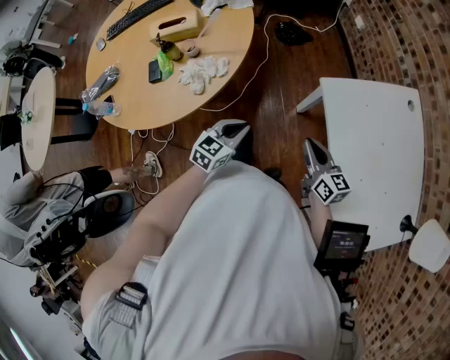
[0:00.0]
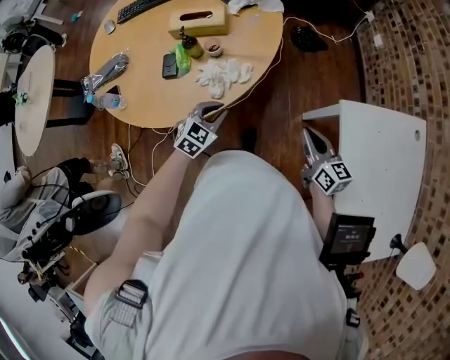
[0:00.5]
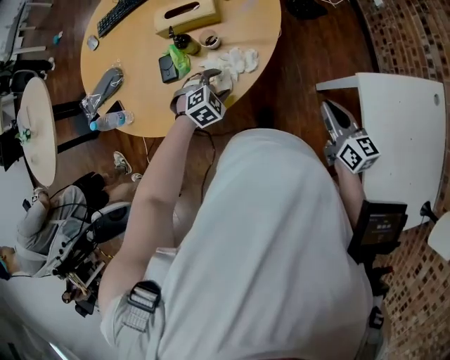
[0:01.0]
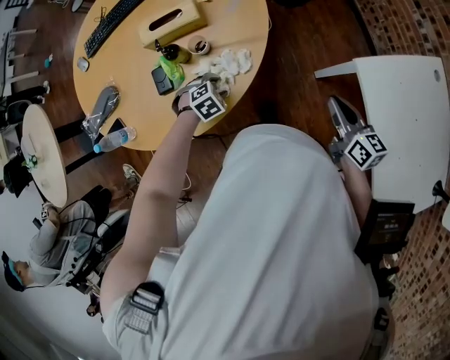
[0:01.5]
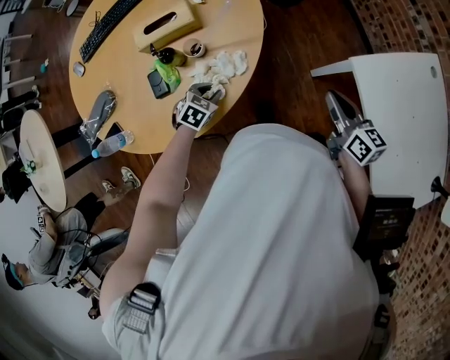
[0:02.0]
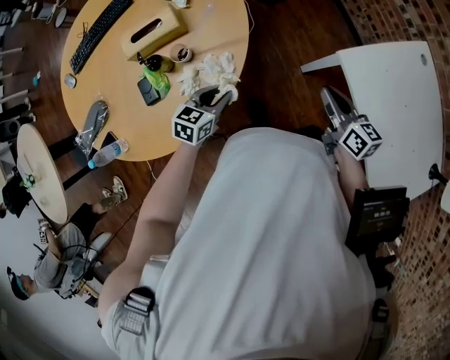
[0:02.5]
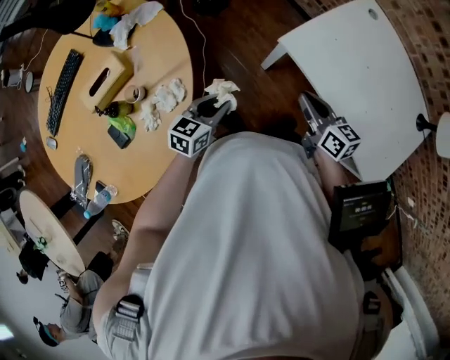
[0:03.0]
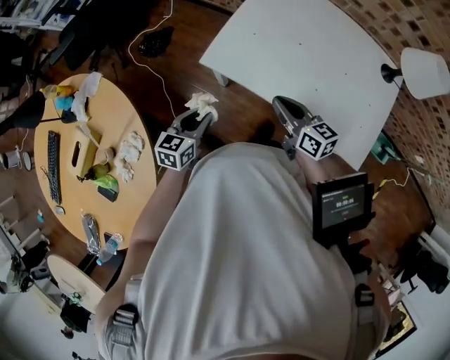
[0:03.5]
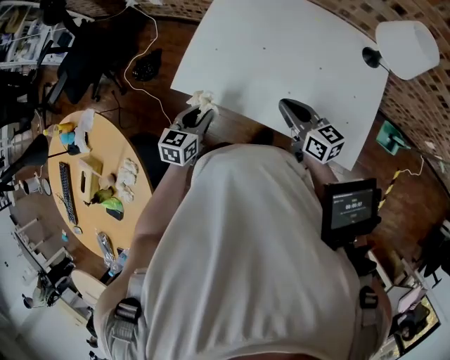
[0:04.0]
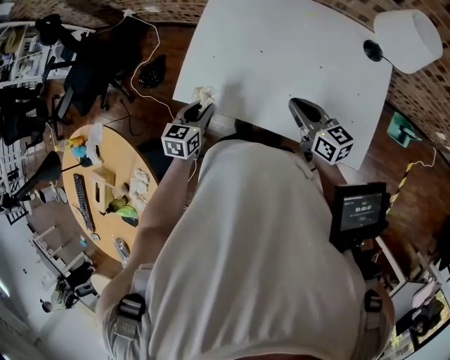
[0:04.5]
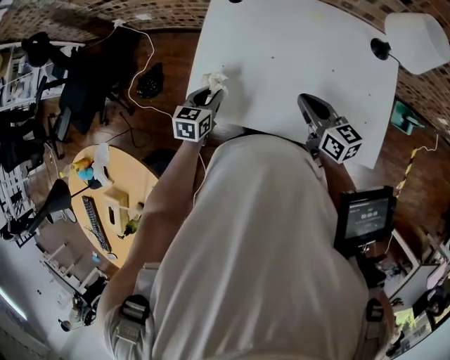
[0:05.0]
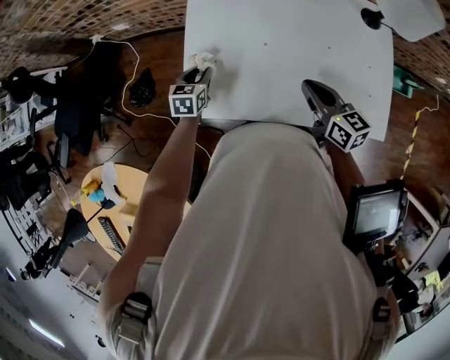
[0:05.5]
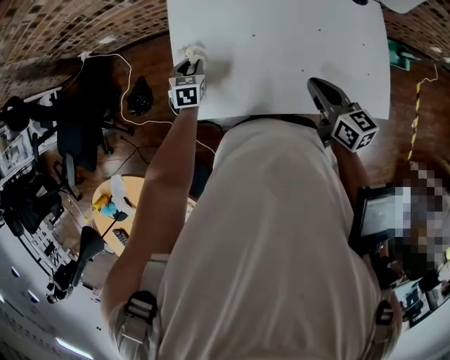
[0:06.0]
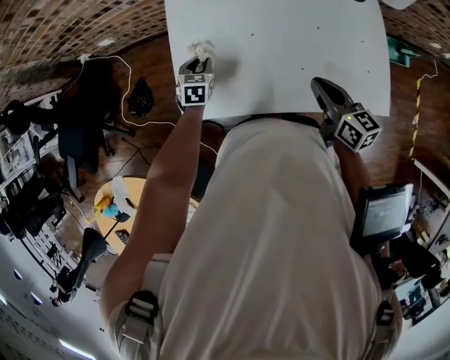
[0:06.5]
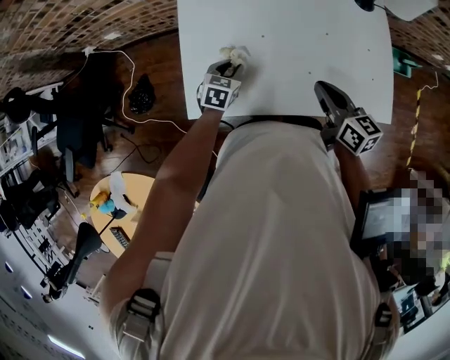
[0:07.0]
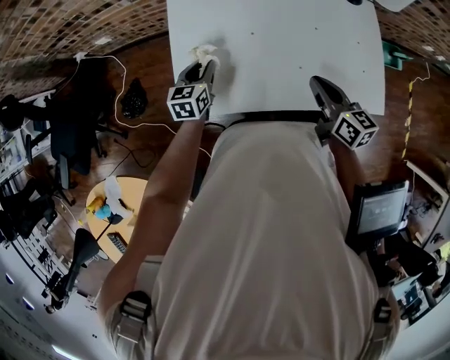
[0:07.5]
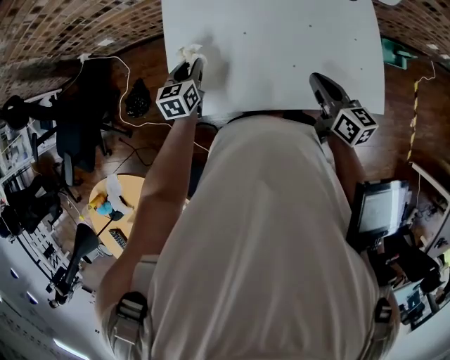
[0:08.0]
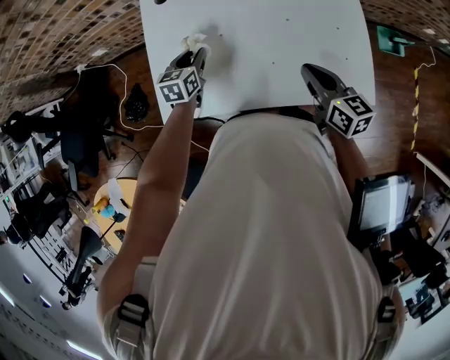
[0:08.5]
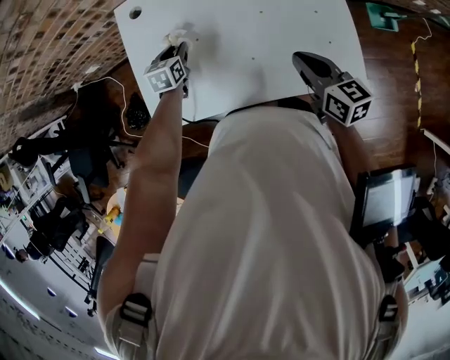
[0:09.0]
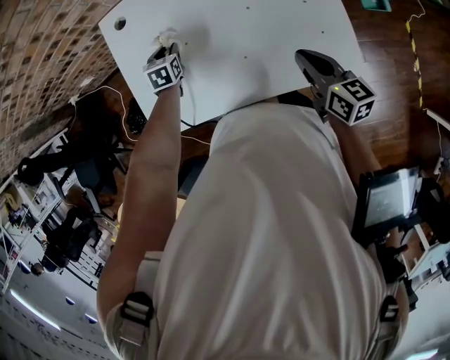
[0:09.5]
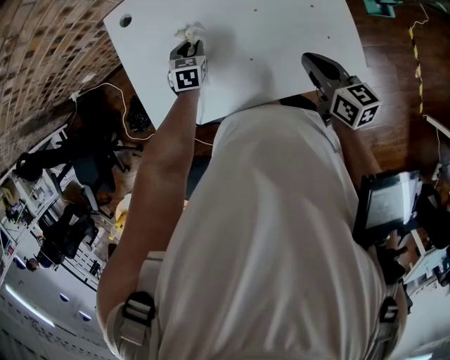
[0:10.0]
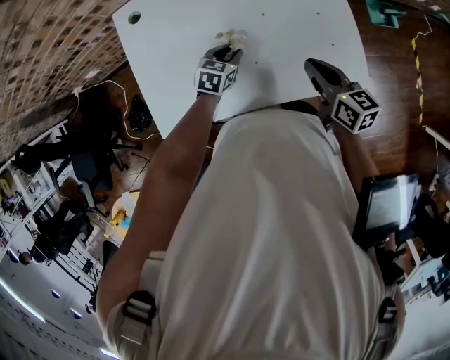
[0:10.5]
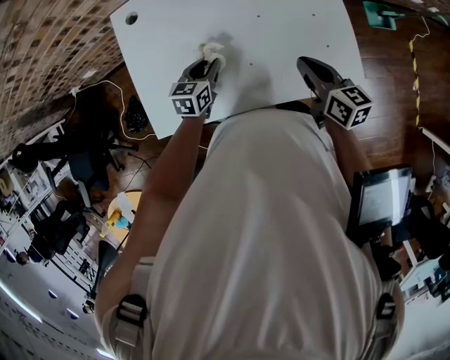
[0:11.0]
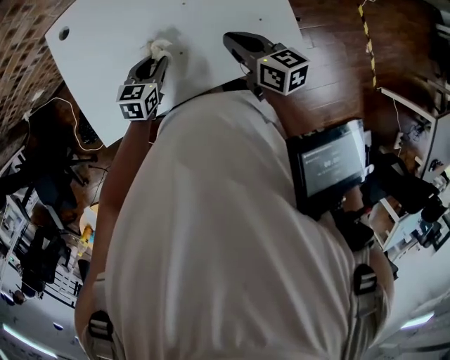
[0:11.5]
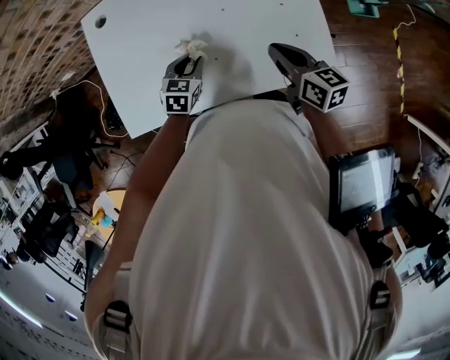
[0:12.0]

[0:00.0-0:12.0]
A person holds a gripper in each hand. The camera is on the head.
0:00.0 to 0:02.0: The left gripper changes place by some 30 cm, tilts its fingers approximately 30 degrees downward, and opens; the right gripper moves approximately 15 cm.
0:02.0 to 0:04.0: The two grippers travel together, approximately 50 cm. The left gripper swivels about 40 degrees. Meanwhile the right gripper changes its angle by approximately 40 degrees.
0:04.0 to 0:06.0: The right gripper changes its angle by approximately 30 degrees, while the left gripper shifts approximately 25 cm forward, and swivels roughly 20 degrees.
0:06.0 to 0:08.0: The left gripper is displaced upward by roughly 5 cm, moves some 10 cm to the right and comes back, and rotates some 20 degrees.
0:08.0 to 0:10.0: The left gripper travels to the right by about 20 cm, and rotates some 30 degrees, while the right gripper travels to the right by approximately 10 cm.
0:10.0 to 0:12.0: The left gripper swings left and right, about 10 cm each way, with 2 reversals.

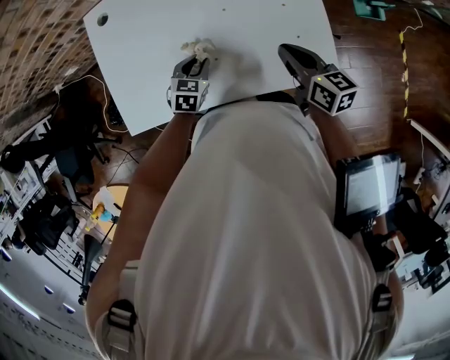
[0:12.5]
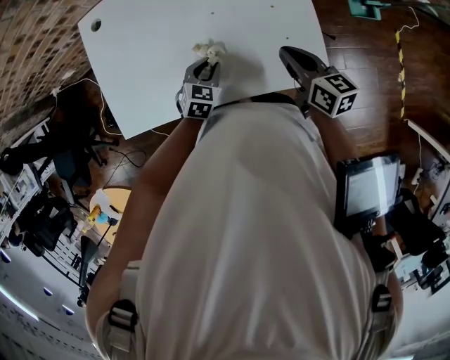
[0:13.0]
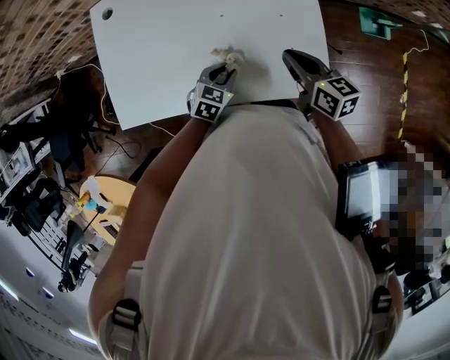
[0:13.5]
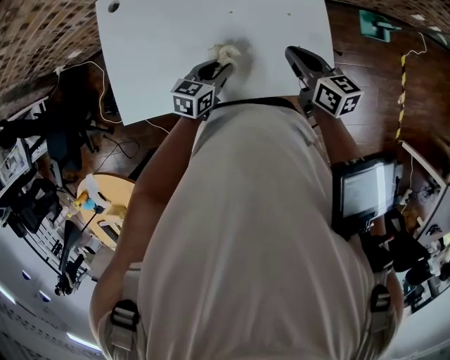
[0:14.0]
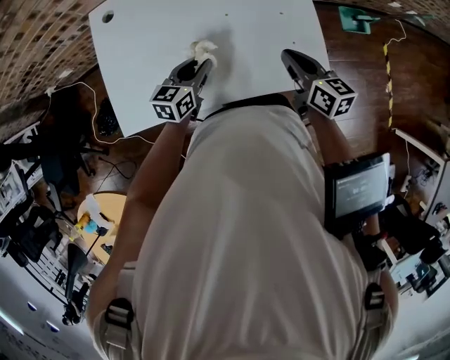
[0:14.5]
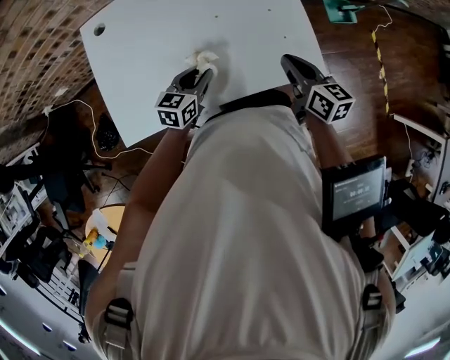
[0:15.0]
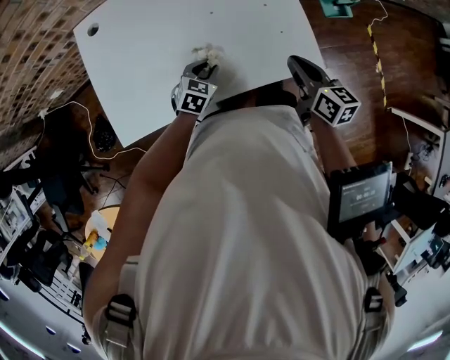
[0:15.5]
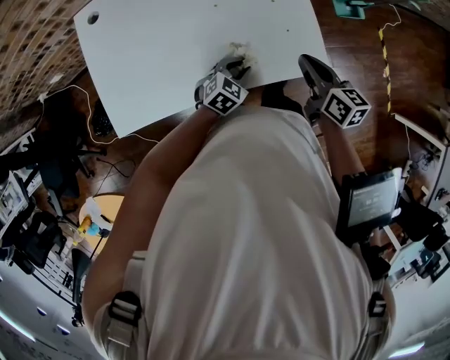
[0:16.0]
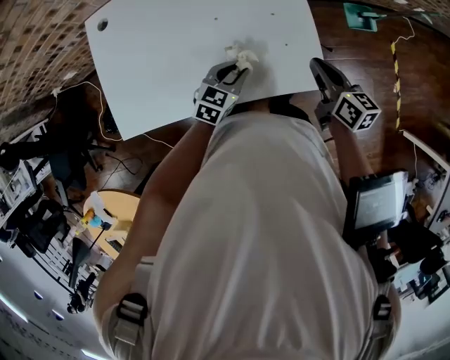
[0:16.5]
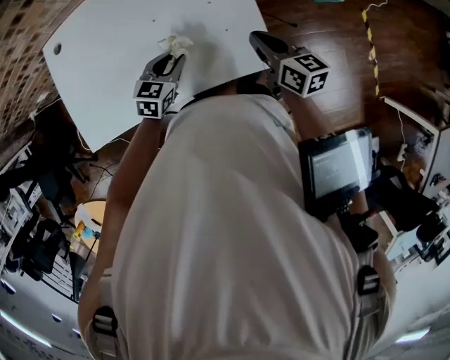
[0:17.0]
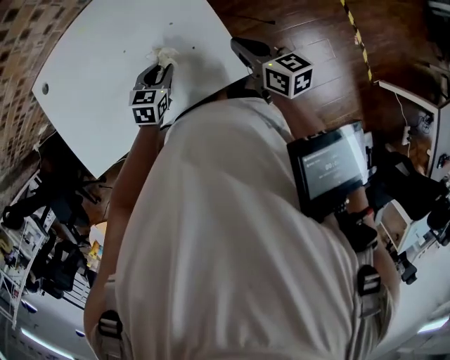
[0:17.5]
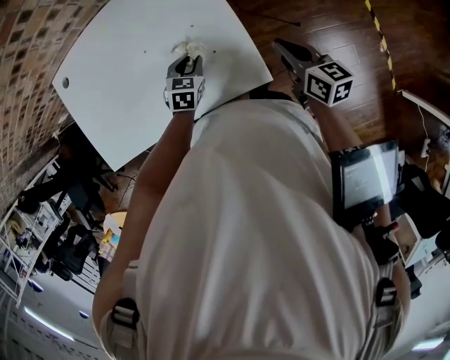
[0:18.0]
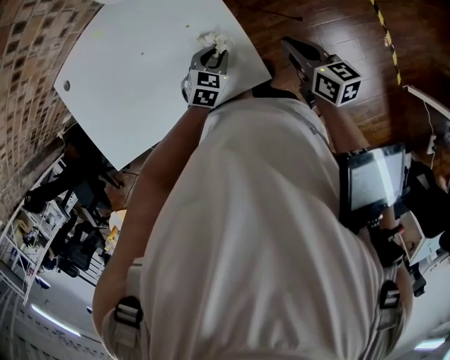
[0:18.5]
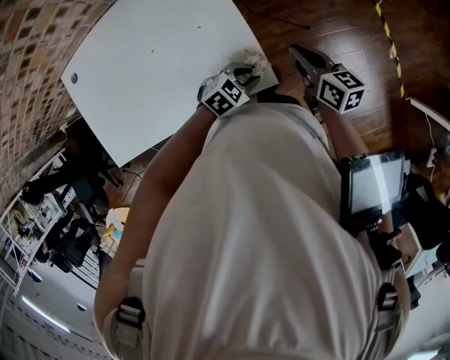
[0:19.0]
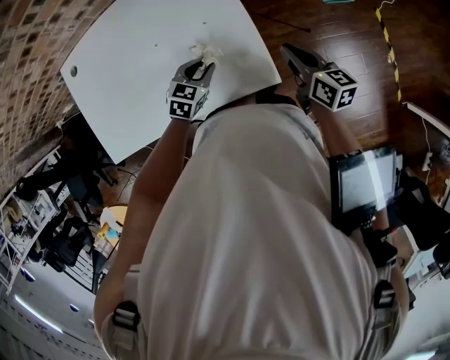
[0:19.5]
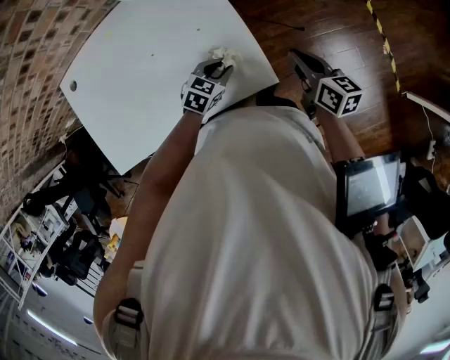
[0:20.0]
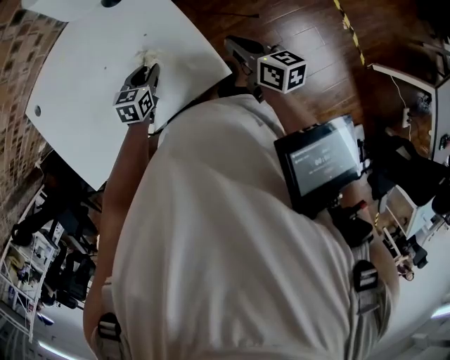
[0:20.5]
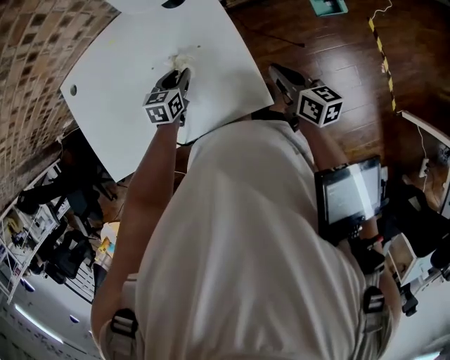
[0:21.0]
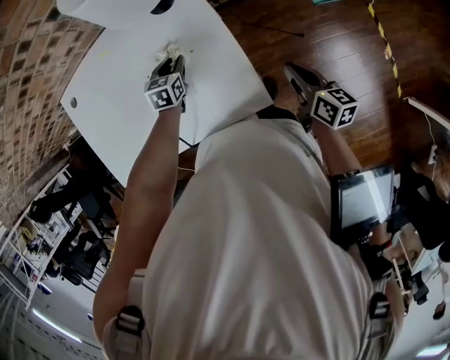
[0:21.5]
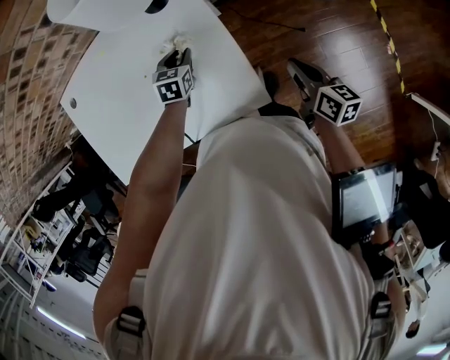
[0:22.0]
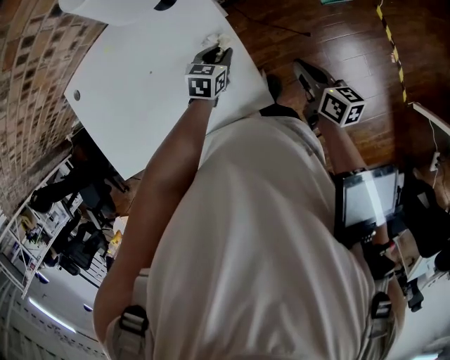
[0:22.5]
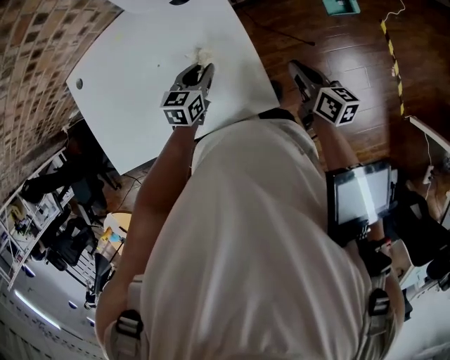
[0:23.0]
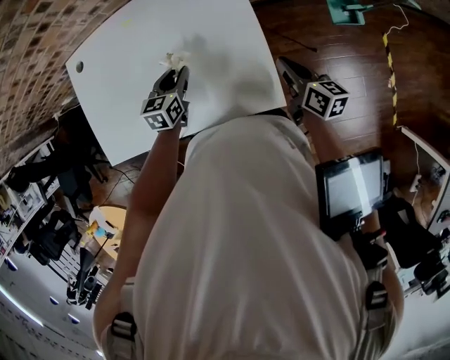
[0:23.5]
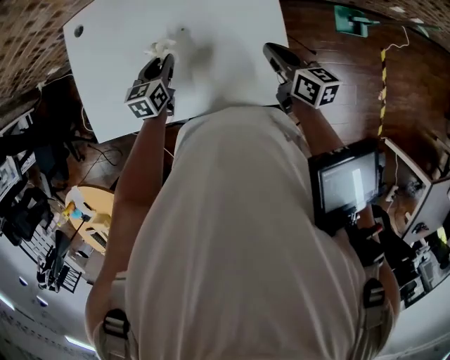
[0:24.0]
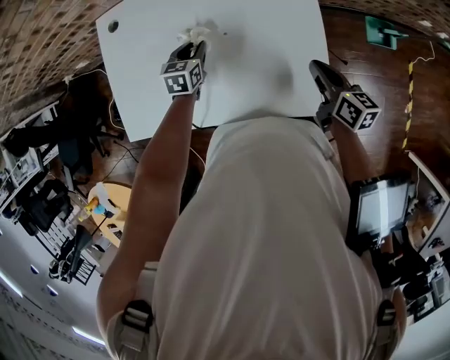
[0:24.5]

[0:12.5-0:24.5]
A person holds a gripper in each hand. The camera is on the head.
0:12.5 to 0:14.5: The left gripper shifts about 10 cm upward, reaches roughly 10 cm to the right, then returns, and rotates approximately 30 degrees.
0:14.5 to 0:16.5: Both grippers travel together to the right, approximately 15 cm. The left gripper swivels about 20 degrees.
0:16.5 to 0:18.5: The right gripper shifts roughly 15 cm to the right. Meanwhile the left gripper moves to the right and forward, some 20 cm.
0:18.5 to 0:20.5: The left gripper swings left and right, roughly 15 cm each way, with 3 reversals.
0:20.5 to 0:22.5: The left gripper heads to the right and forward, covering approximately 15 cm. Meanwhile the right gripper is displaced to the right by some 5 cm.
0:22.5 to 0:24.5: The left gripper is displaced to the left by approximately 35 cm, and turns by some 30 degrees. The right gripper moves to the left, some 20 cm.

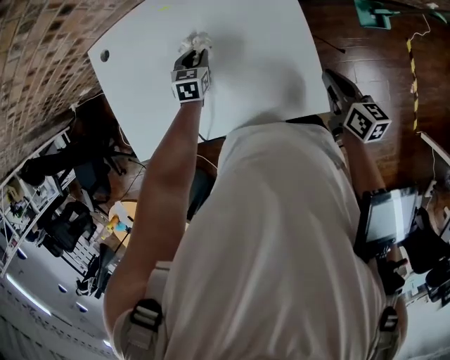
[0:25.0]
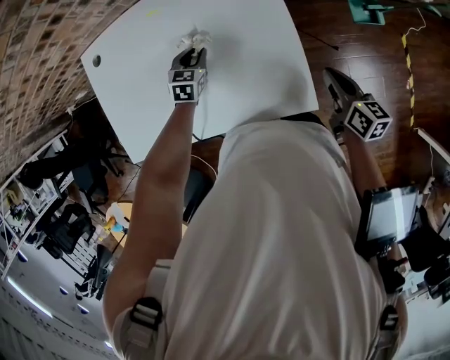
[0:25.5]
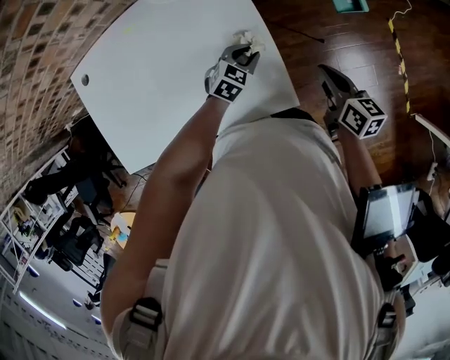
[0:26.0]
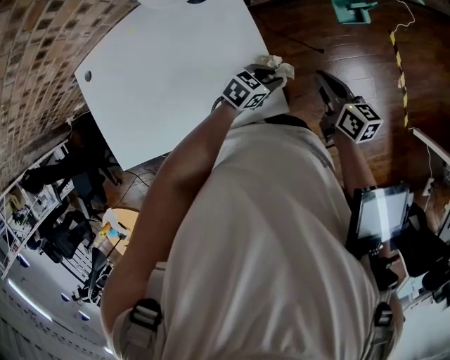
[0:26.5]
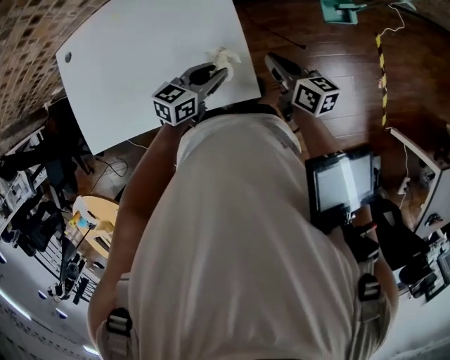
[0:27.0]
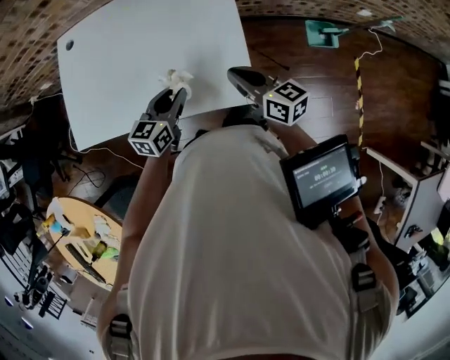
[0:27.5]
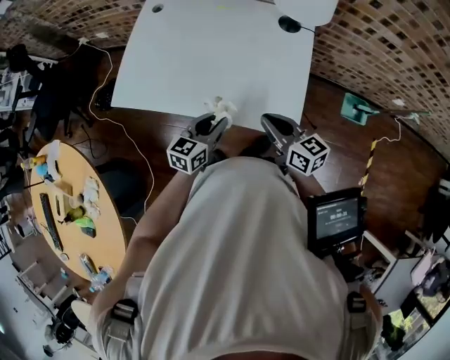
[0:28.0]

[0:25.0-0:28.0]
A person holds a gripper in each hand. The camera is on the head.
0:25.0 to 0:26.5: The right gripper changes place by about 15 cm. The left gripper changes place by about 40 cm, and turns by some 50 degrees.
0:26.5 to 0:28.0: The right gripper moves about 30 cm, and turns by approximately 50 degrees. The left gripper moves roughly 35 cm, and turns by approximately 60 degrees.
